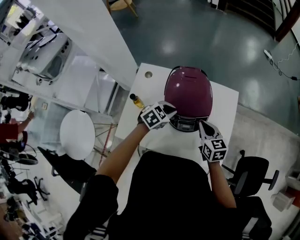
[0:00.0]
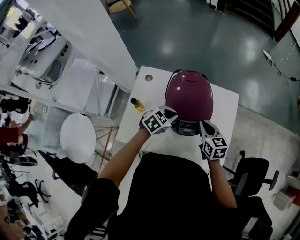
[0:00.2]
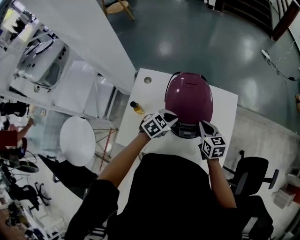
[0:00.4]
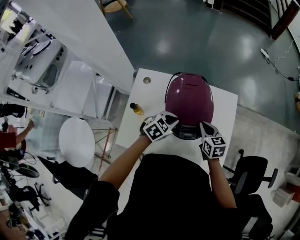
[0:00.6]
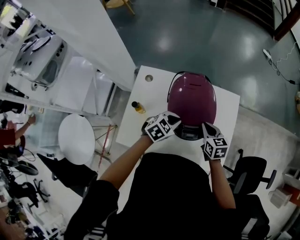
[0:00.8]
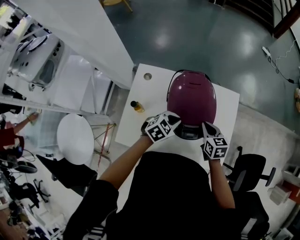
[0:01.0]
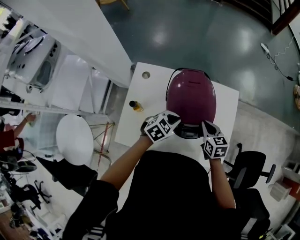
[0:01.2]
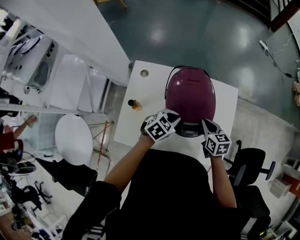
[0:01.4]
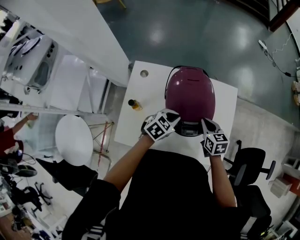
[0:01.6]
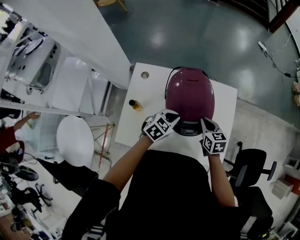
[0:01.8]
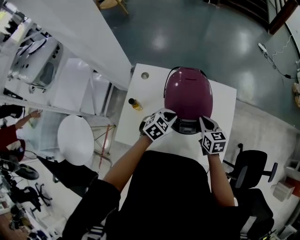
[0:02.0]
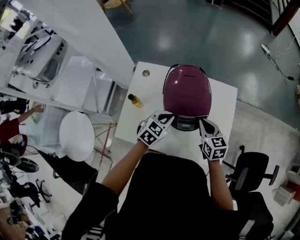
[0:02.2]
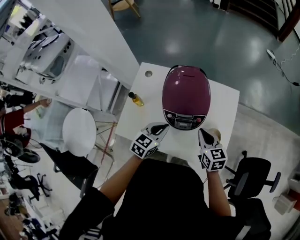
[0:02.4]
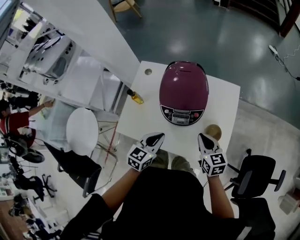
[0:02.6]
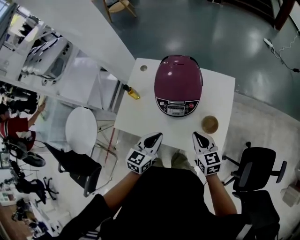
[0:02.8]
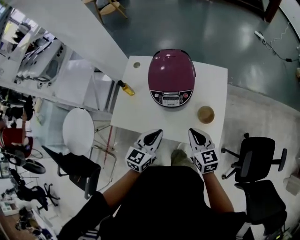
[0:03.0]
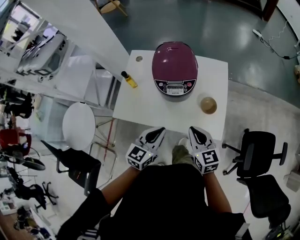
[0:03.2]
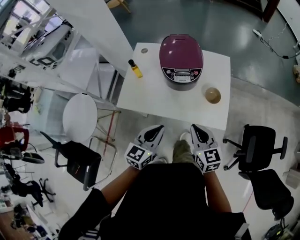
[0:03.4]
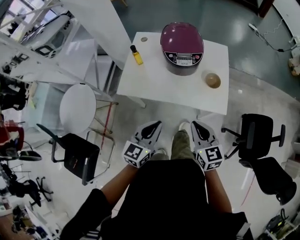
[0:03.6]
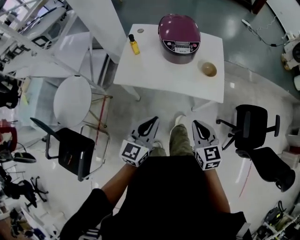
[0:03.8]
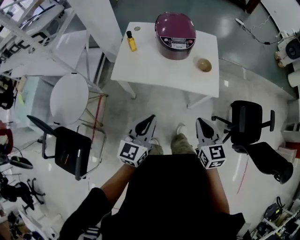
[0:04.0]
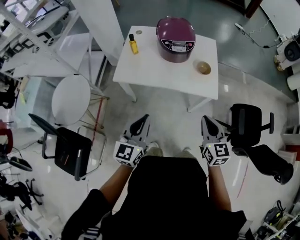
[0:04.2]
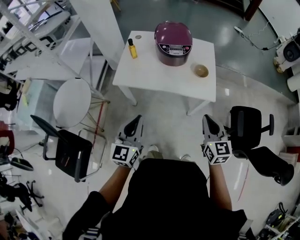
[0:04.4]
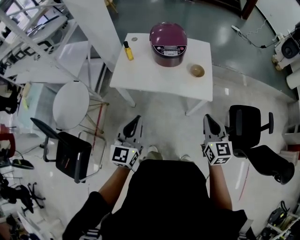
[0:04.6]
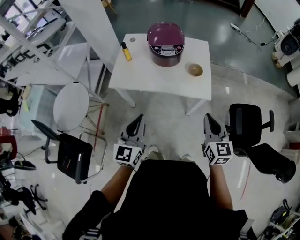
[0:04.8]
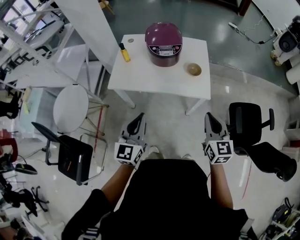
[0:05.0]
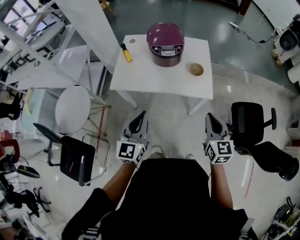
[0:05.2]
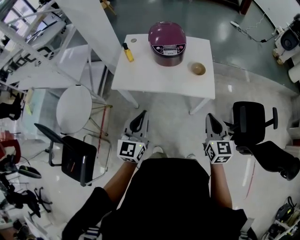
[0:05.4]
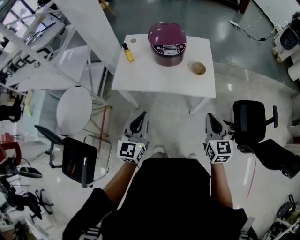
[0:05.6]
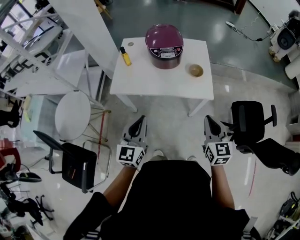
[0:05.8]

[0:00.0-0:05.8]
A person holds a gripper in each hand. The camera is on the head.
0:00.0 to 0:01.4: The right gripper changes place by some 5 cm.
0:01.4 to 0:02.8: The right gripper heads backward and to the right, covering approximately 15 cm. Meanwhile the left gripper goes about 20 cm backward, and turns by approximately 40 degrees.
0:02.8 to 0:04.4: Both grippers travel together backward, roughly 30 cm. The left gripper turns by about 20 degrees. Meanwhile the right gripper rotates approximately 20 degrees.
0:04.4 to 0:05.8: The grippers make only small movements.

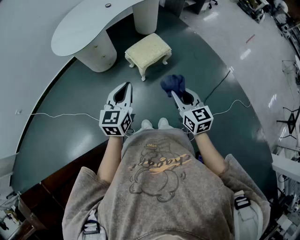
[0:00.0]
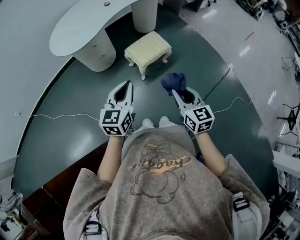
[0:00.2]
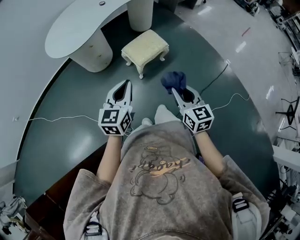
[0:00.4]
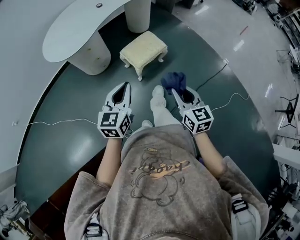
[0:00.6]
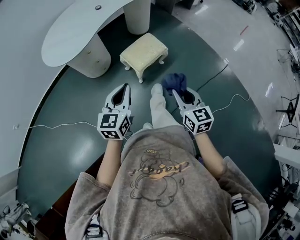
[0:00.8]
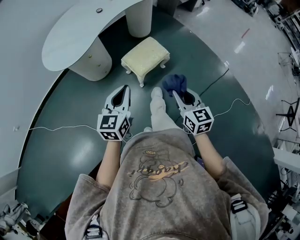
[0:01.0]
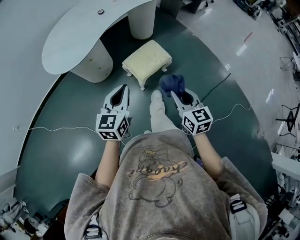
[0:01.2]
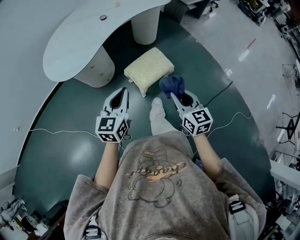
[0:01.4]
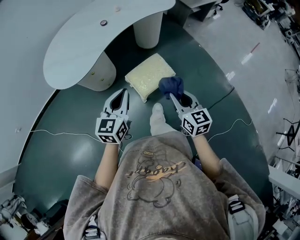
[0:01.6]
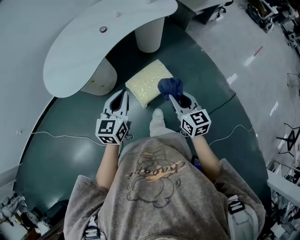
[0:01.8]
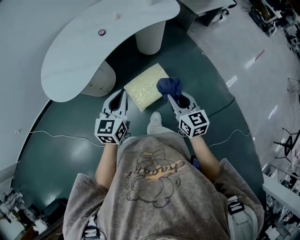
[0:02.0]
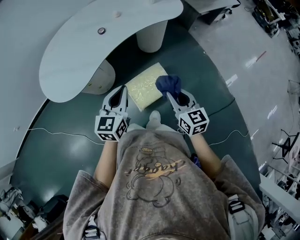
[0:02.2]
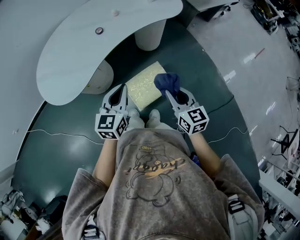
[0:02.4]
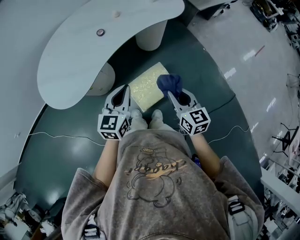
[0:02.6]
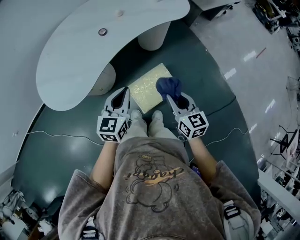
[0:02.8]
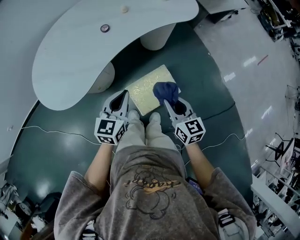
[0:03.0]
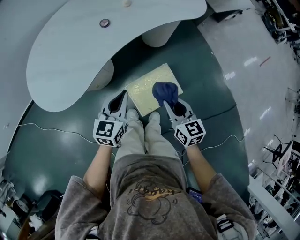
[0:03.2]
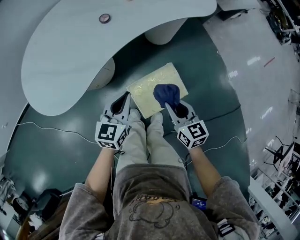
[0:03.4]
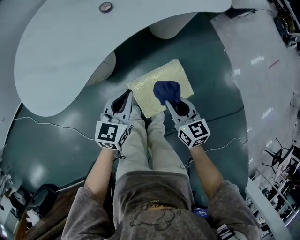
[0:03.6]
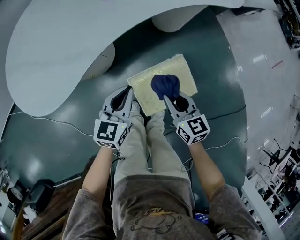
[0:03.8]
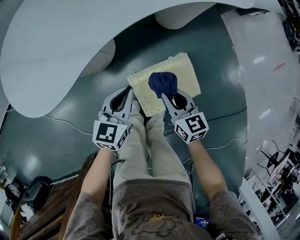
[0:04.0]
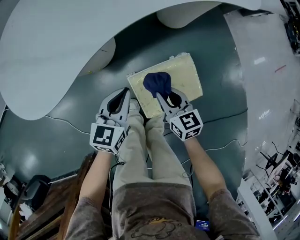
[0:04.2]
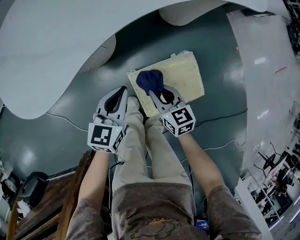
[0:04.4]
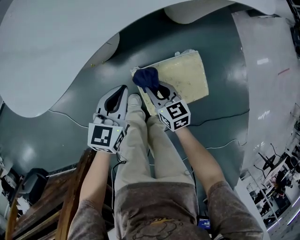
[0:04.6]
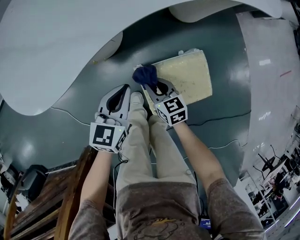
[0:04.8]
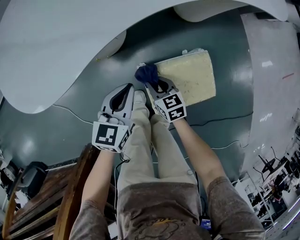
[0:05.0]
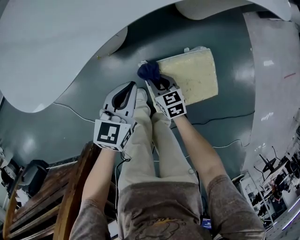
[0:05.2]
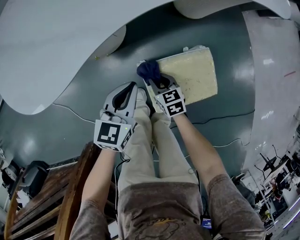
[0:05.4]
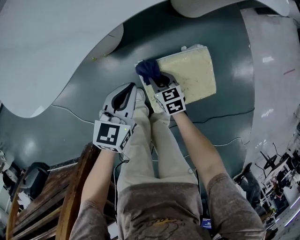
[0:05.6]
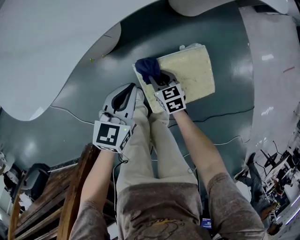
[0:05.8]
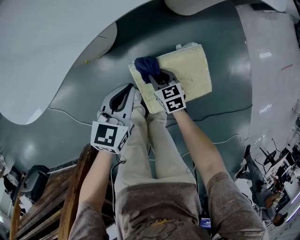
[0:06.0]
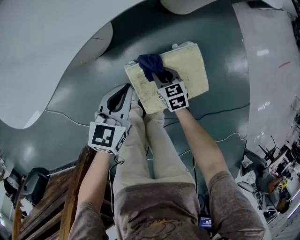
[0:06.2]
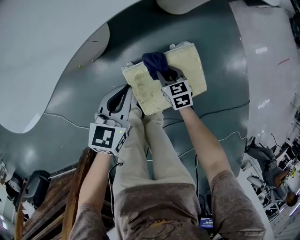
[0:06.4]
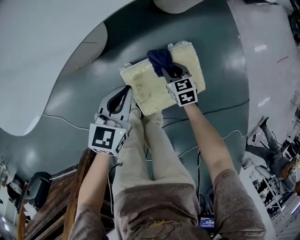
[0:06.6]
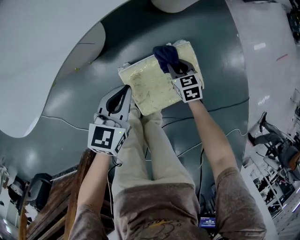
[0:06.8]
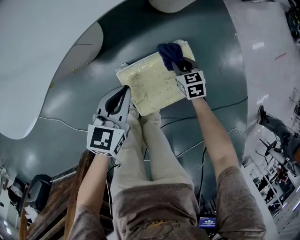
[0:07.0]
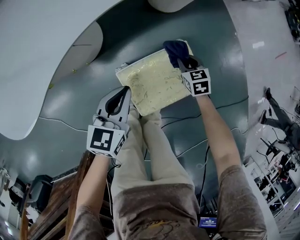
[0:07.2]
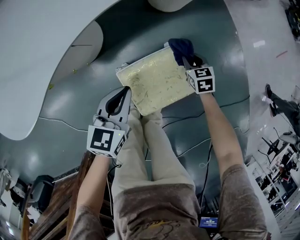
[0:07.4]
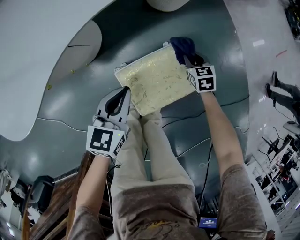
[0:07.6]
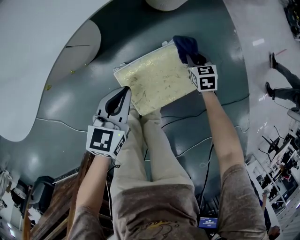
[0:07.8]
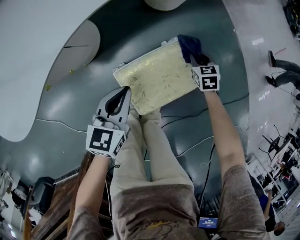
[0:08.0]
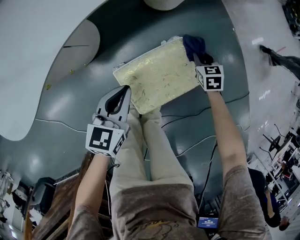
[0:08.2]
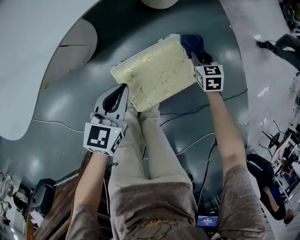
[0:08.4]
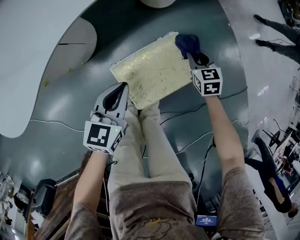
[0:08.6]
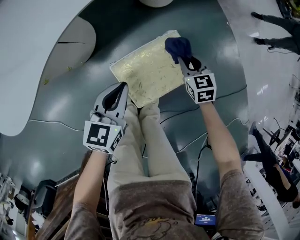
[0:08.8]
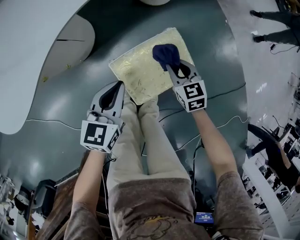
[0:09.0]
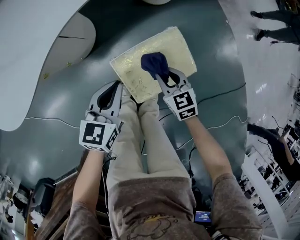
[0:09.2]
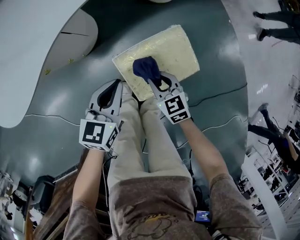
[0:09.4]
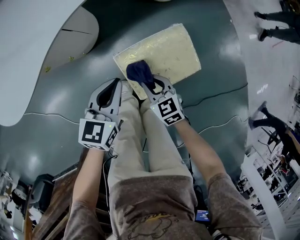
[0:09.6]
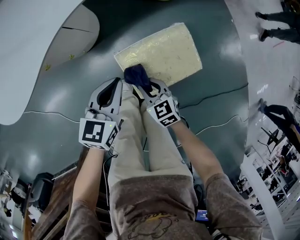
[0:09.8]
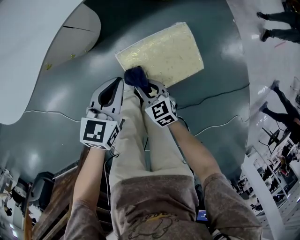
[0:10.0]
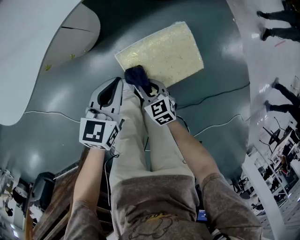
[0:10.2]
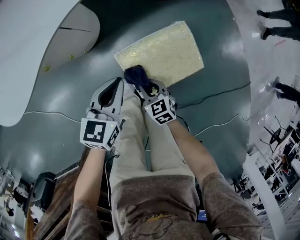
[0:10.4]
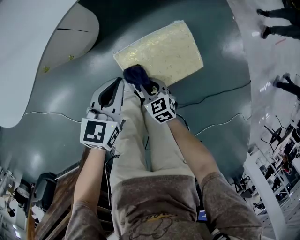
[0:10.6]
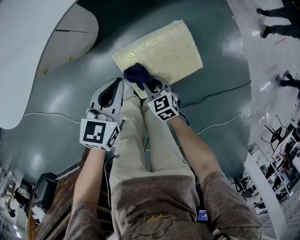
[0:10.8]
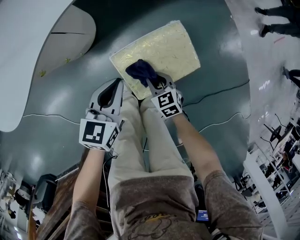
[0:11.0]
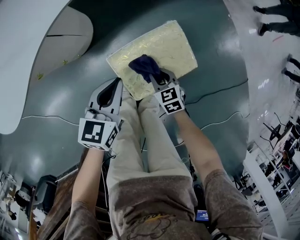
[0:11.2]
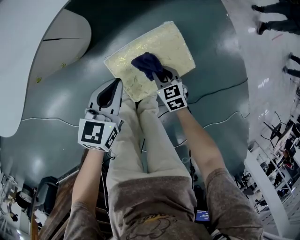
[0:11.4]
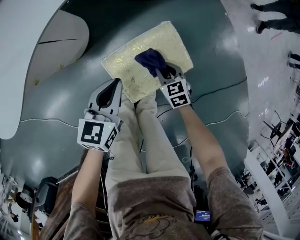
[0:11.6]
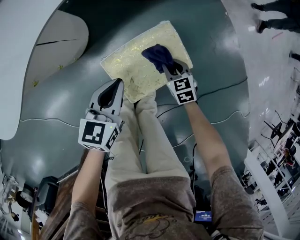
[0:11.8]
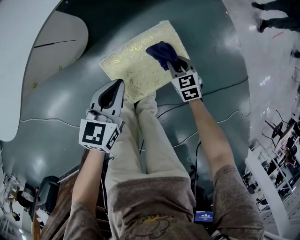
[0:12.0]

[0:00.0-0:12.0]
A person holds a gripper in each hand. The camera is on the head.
0:00.0 to 0:01.6: The grippers both shift forward by some 25 cm.
0:01.6 to 0:03.0: The grippers both shift forward by roughly 20 cm.
0:03.0 to 0:04.4: The right gripper moves downward and to the left, about 30 cm, and turns by some 20 degrees. The left gripper goes about 25 cm downward.
0:04.4 to 0:06.0: The right gripper is displaced downward by approximately 15 cm.
0:06.0 to 0:07.6: The right gripper travels to the right and forward by about 25 cm.
0:07.6 to 0:09.0: The right gripper shifts roughly 15 cm backward, upward and to the left.
0:09.0 to 0:10.4: The right gripper moves to the left, backward and downward, approximately 20 cm.
0:10.4 to 0:12.0: The right gripper is displaced to the right and forward by approximately 20 cm. Meanwhile the left gripper heads to the right, covering roughly 5 cm.

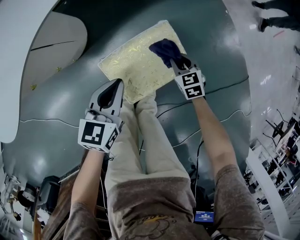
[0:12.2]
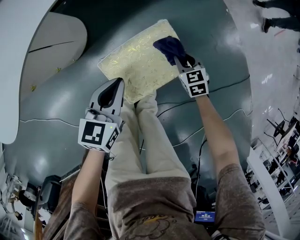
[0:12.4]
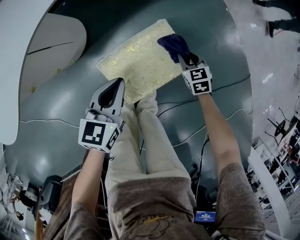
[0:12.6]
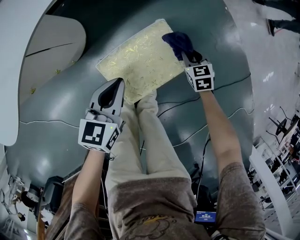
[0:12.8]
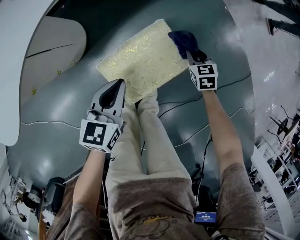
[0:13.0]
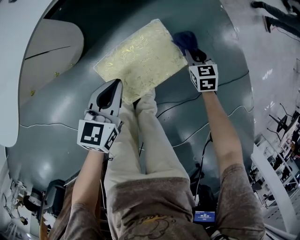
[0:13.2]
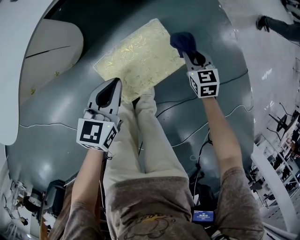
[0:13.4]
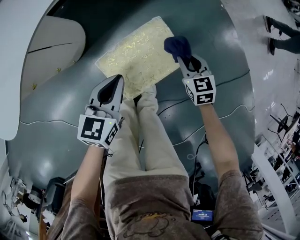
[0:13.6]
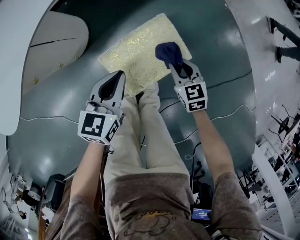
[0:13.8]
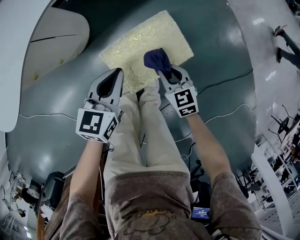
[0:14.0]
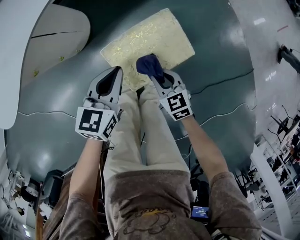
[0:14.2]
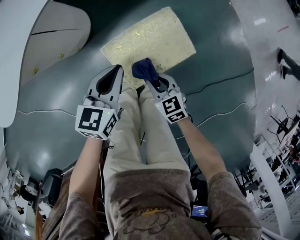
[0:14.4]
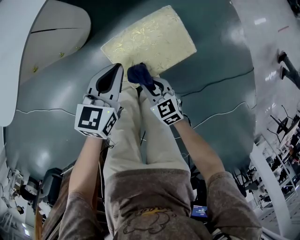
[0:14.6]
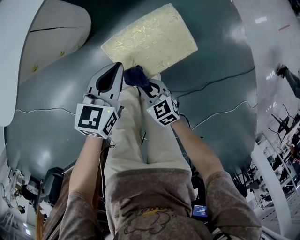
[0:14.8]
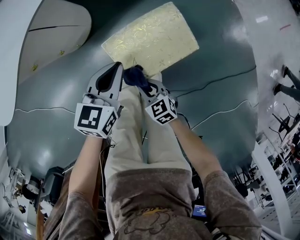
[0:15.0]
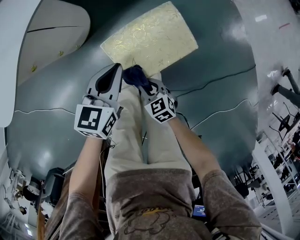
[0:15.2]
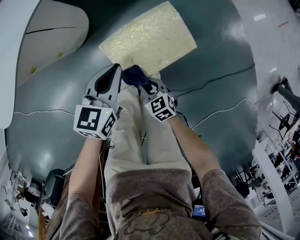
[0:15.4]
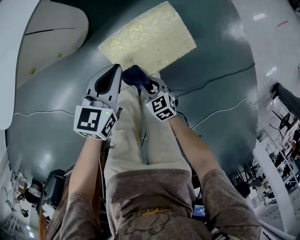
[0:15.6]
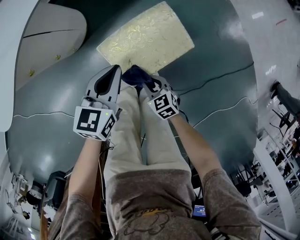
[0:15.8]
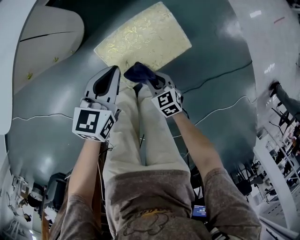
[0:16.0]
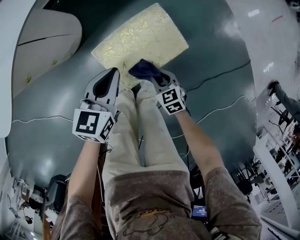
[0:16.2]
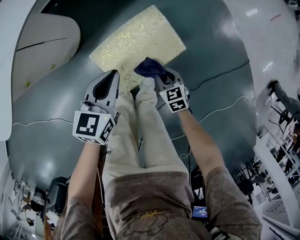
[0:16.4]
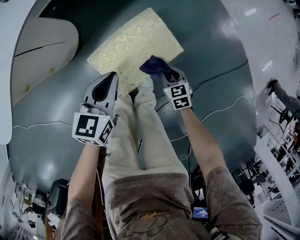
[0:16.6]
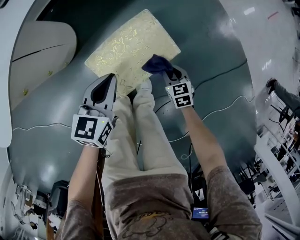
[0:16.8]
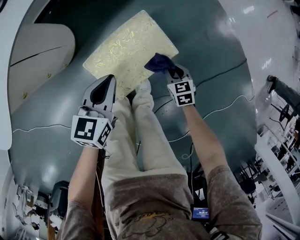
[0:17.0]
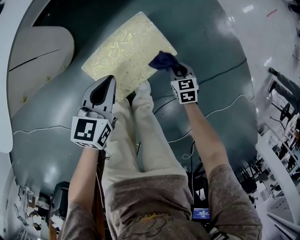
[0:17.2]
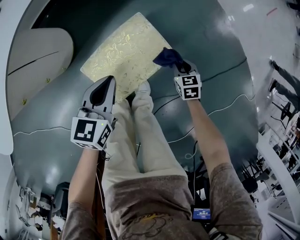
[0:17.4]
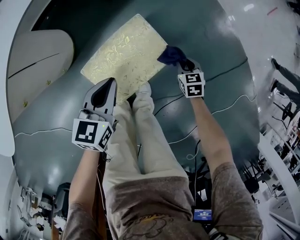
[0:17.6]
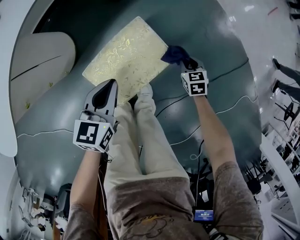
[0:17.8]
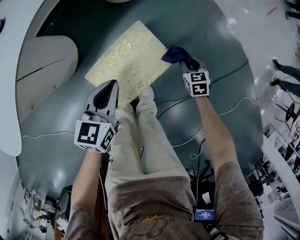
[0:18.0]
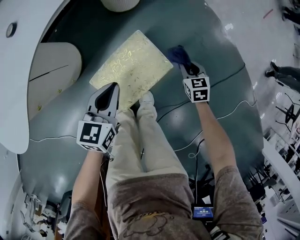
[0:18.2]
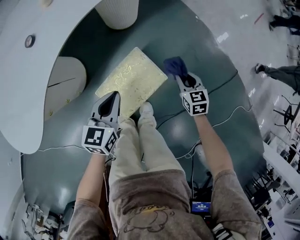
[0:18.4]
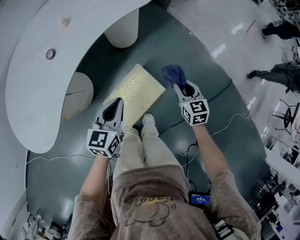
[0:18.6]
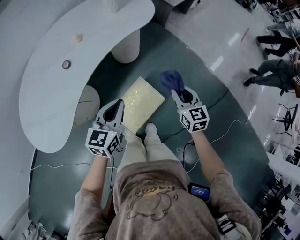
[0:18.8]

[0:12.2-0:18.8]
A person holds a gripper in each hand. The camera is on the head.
0:12.2 to 0:13.8: The right gripper travels upward and backward by about 10 cm.
0:13.8 to 0:15.4: The right gripper is displaced to the left, backward and downward by approximately 20 cm.
0:15.4 to 0:17.2: The right gripper heads to the right and forward, covering approximately 25 cm, and rotates roughly 30 degrees; the left gripper is displaced to the right by approximately 5 cm.
0:17.2 to 0:18.8: Both grippers travel together upward, approximately 35 cm. The right gripper rotates roughly 30 degrees.
